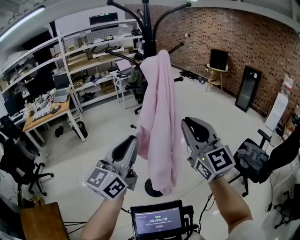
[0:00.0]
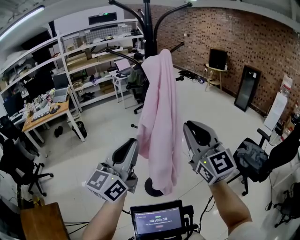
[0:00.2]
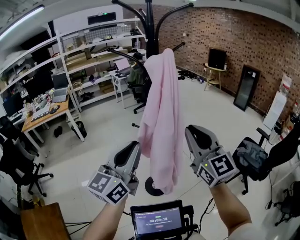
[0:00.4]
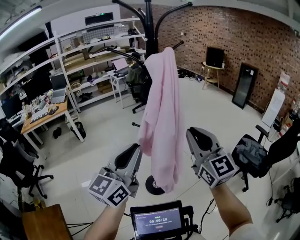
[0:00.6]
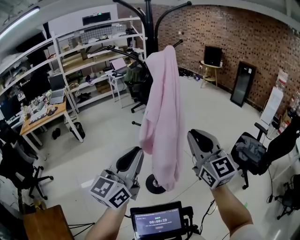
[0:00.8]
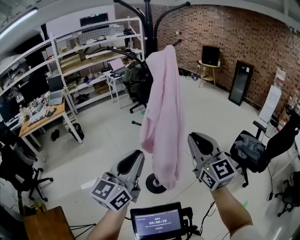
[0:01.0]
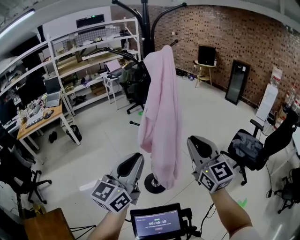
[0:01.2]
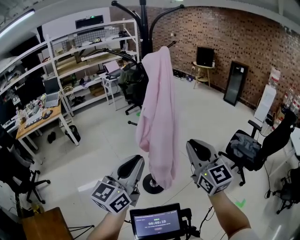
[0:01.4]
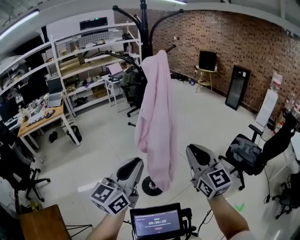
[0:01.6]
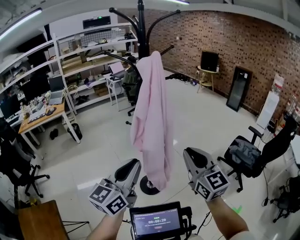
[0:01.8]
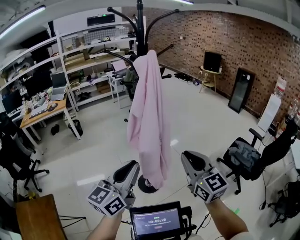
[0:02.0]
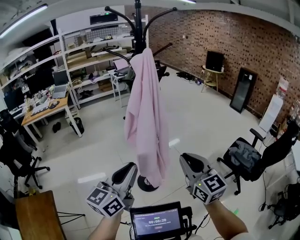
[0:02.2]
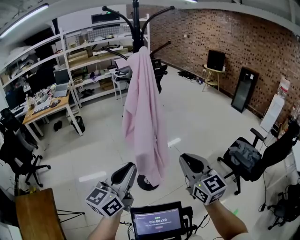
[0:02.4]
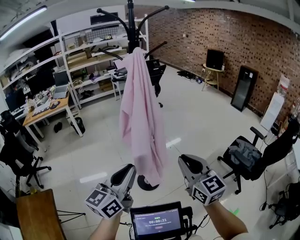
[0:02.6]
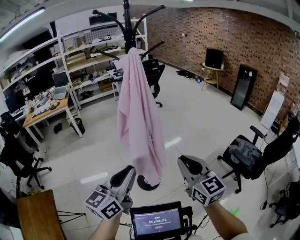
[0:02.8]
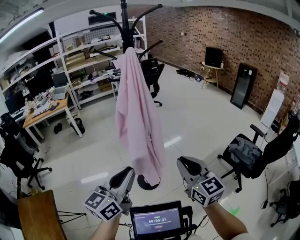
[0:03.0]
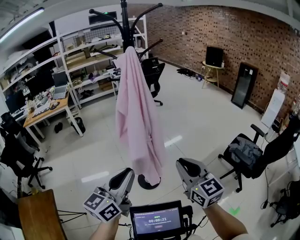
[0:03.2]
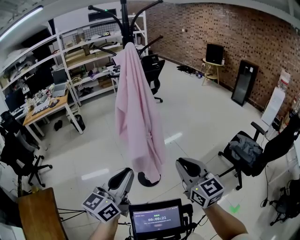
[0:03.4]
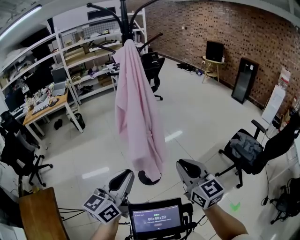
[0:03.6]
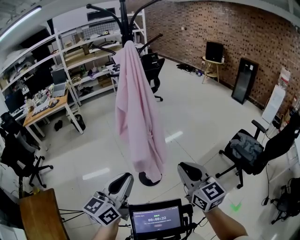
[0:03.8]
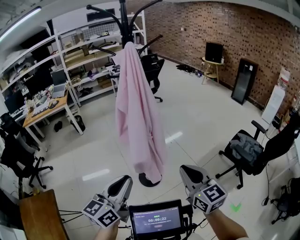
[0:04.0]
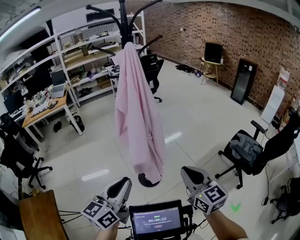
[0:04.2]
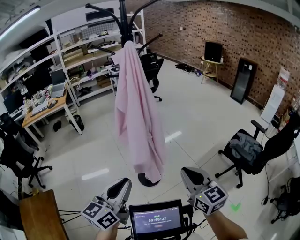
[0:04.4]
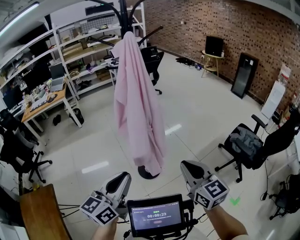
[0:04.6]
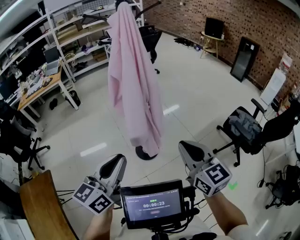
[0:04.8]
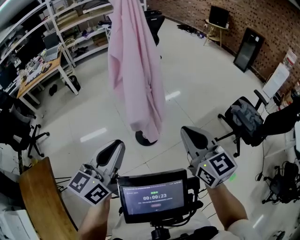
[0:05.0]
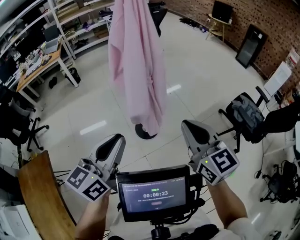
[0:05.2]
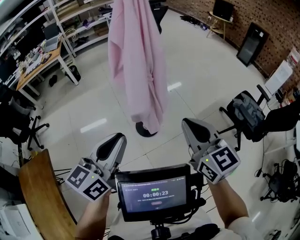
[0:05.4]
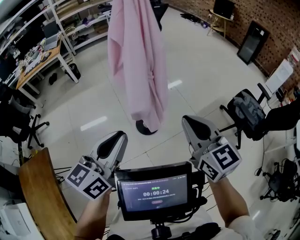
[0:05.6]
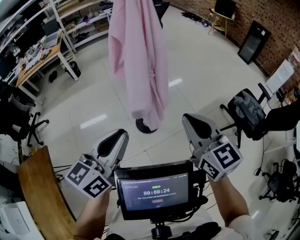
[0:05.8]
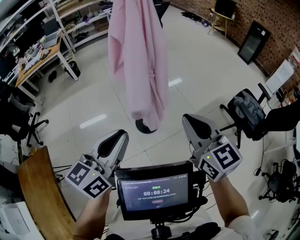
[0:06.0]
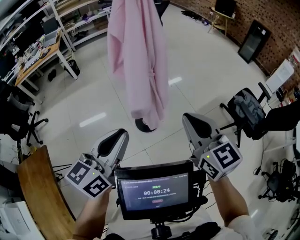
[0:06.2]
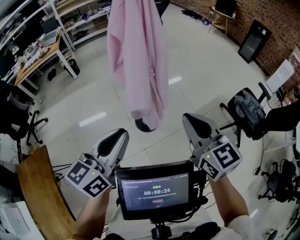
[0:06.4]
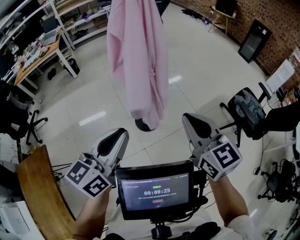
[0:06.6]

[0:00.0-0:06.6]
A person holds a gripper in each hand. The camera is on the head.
0:00.0 to 0:01.6: The left gripper heads backward and downward, covering about 10 cm; the right gripper shifts some 15 cm downward and backward.
0:01.6 to 0:03.2: The left gripper heads to the right and backward, covering roughly 10 cm, while the right gripper moves downward and to the right, about 10 cm.
0:03.2 to 0:06.6: There are only small adjustments of the grippers.

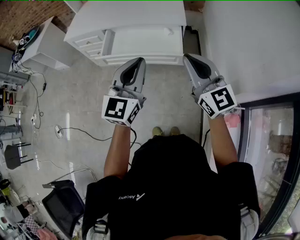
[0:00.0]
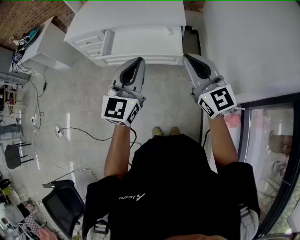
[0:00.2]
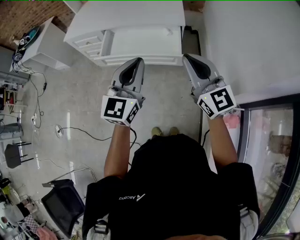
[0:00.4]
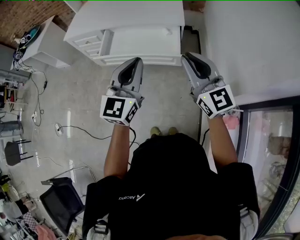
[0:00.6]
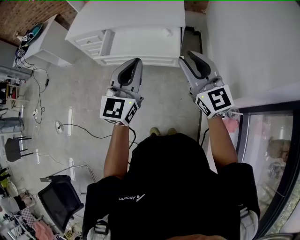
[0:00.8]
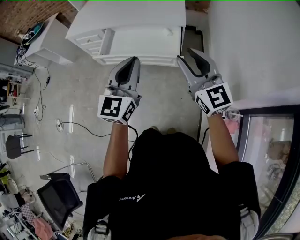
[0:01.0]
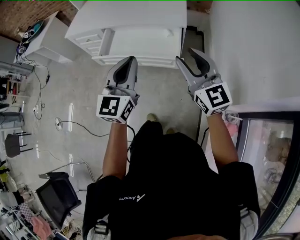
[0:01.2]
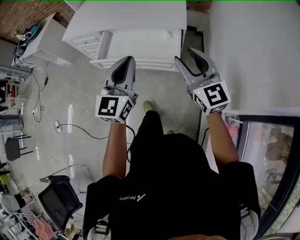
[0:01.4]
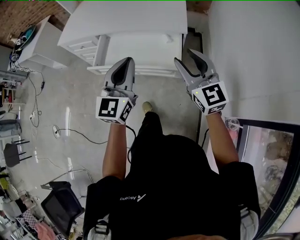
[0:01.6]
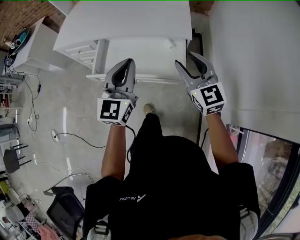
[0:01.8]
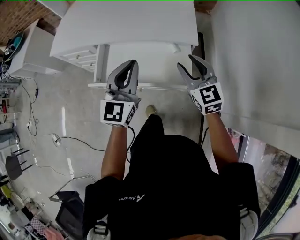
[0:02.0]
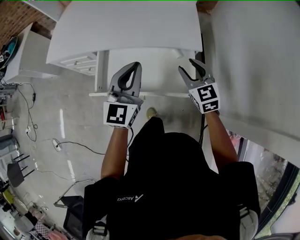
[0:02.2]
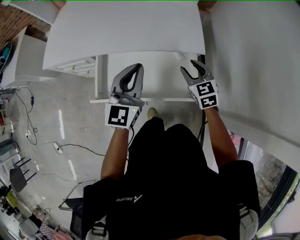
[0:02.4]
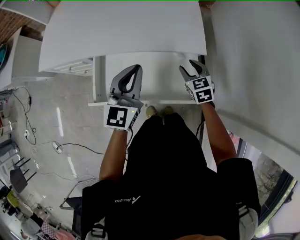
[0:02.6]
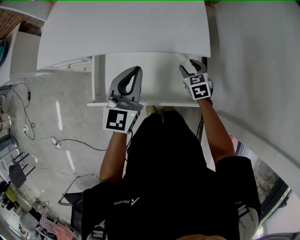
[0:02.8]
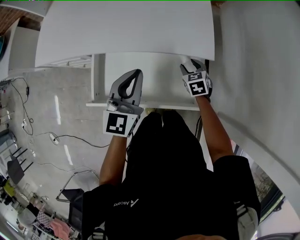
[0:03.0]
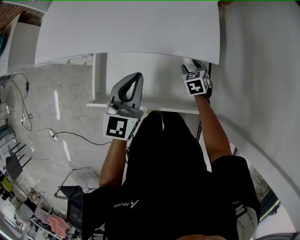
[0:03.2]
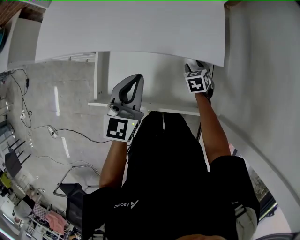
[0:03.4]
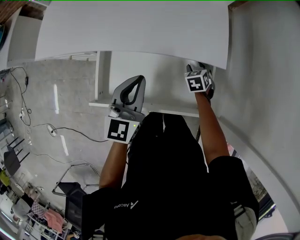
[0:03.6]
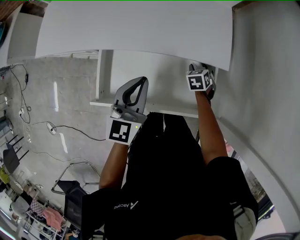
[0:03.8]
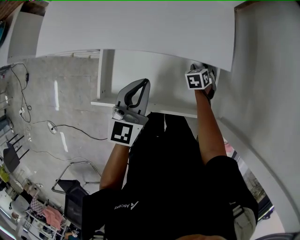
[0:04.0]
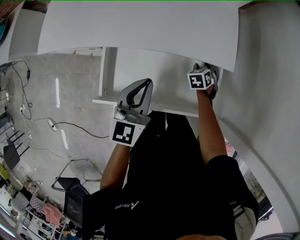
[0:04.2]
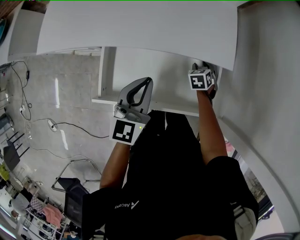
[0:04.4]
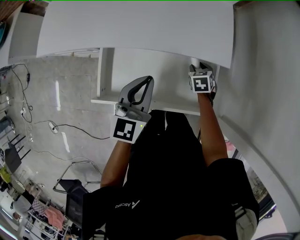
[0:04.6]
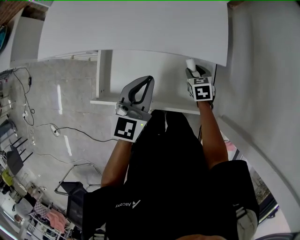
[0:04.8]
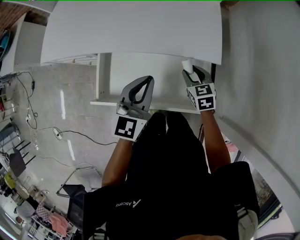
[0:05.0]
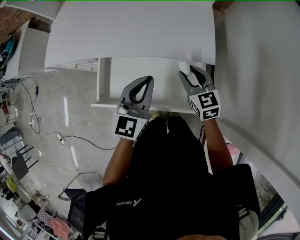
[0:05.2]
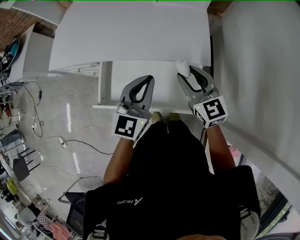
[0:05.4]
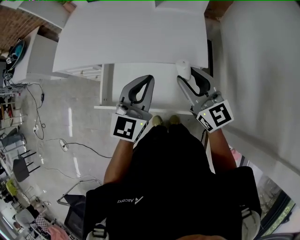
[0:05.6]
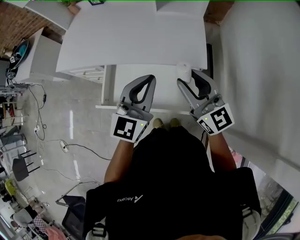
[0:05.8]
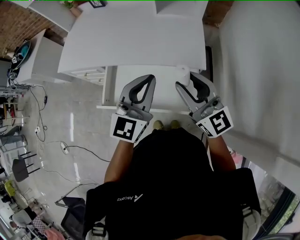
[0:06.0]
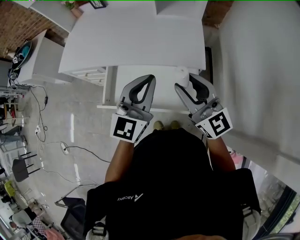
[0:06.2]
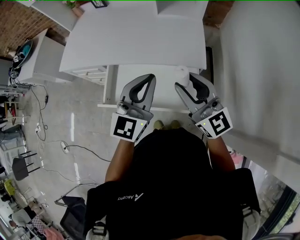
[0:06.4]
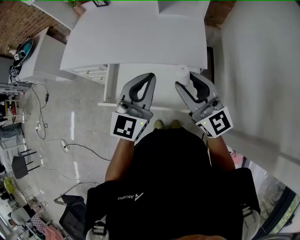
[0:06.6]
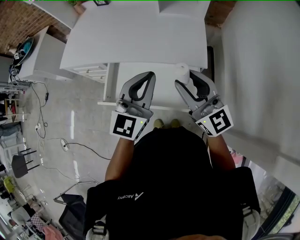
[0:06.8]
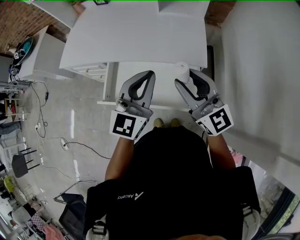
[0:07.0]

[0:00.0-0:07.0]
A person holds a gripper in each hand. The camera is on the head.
0:00.0 to 0:01.4: The left gripper goes some 10 cm forward. The right gripper heads forward and to the right, covering roughly 10 cm, and opens.
0:01.4 to 0:02.8: The left gripper shifts about 35 cm forward; the right gripper is displaced forward and downward by approximately 50 cm, and points its fingers some 50 degrees further downward.
0:02.8 to 0:04.2: The left gripper heads downward, covering roughly 5 cm, while the right gripper goes roughly 10 cm downward, and swivels roughly 20 degrees.
0:04.2 to 0:05.6: The right gripper shifts roughly 35 cm upward, and angles its fingers upward, by some 60 degrees; the left gripper moves upward, roughly 10 cm.
0:05.6 to 0:07.0: The left gripper travels upward by roughly 5 cm. Meanwhile the right gripper is displaced upward and backward by approximately 10 cm.

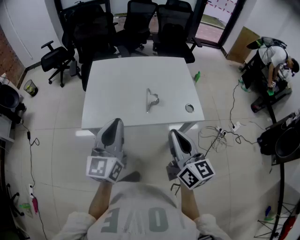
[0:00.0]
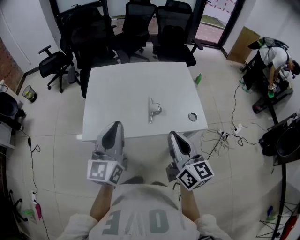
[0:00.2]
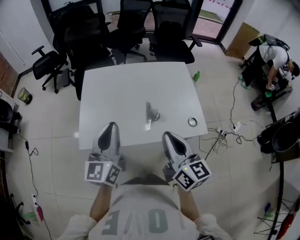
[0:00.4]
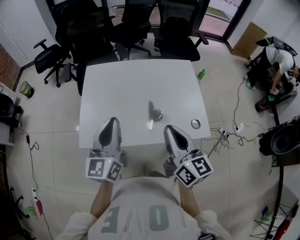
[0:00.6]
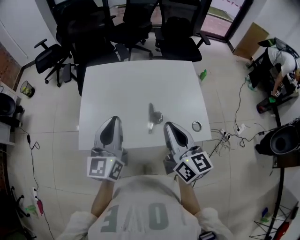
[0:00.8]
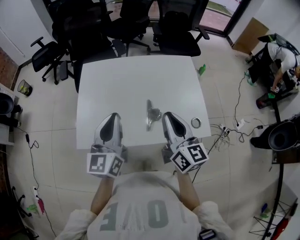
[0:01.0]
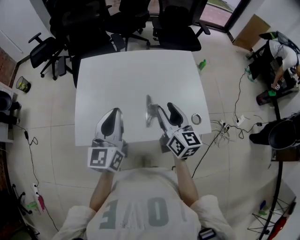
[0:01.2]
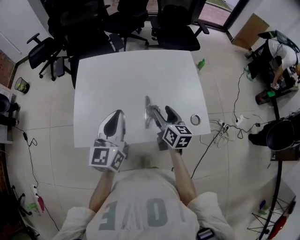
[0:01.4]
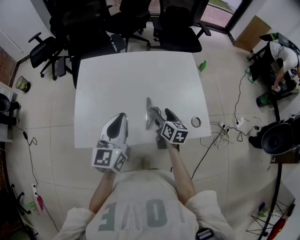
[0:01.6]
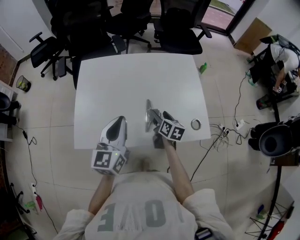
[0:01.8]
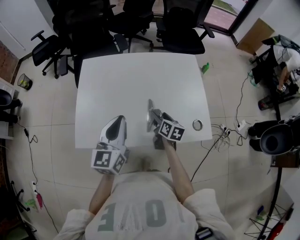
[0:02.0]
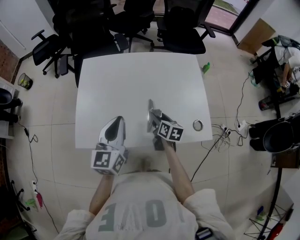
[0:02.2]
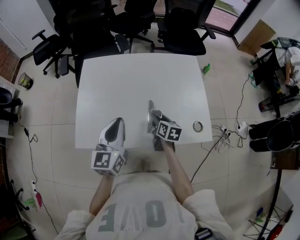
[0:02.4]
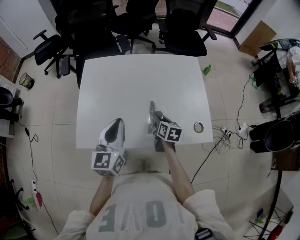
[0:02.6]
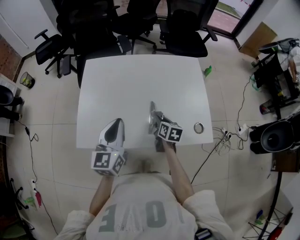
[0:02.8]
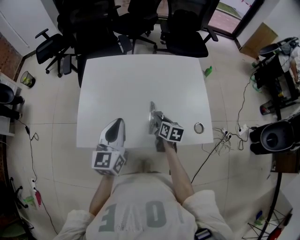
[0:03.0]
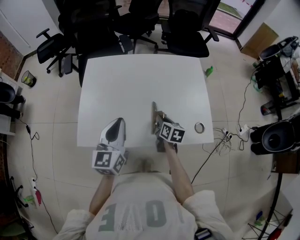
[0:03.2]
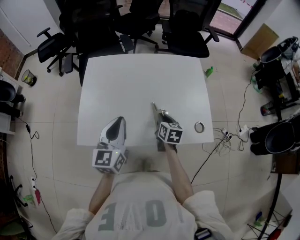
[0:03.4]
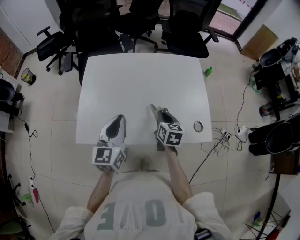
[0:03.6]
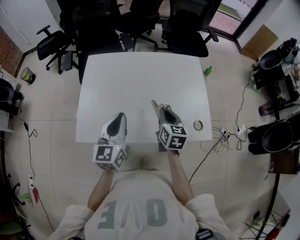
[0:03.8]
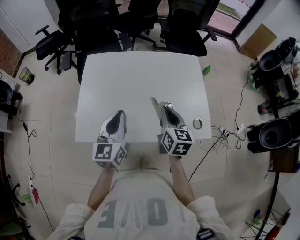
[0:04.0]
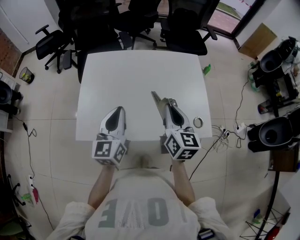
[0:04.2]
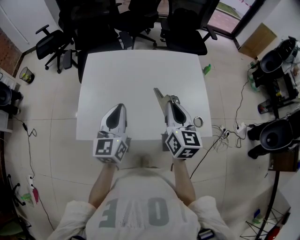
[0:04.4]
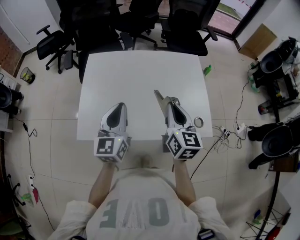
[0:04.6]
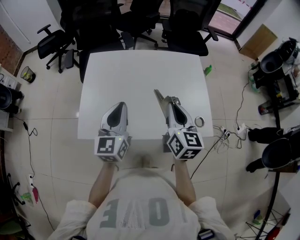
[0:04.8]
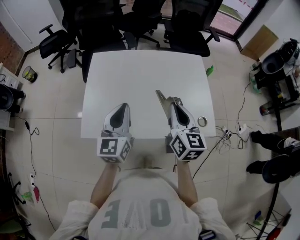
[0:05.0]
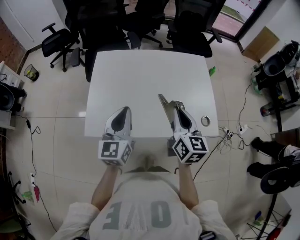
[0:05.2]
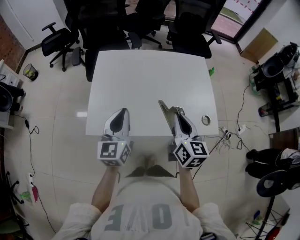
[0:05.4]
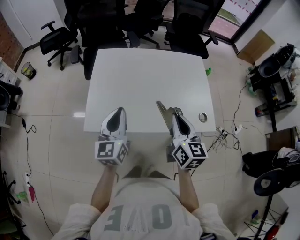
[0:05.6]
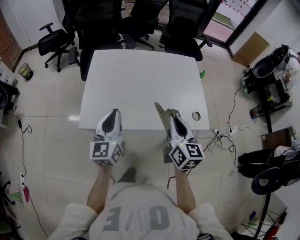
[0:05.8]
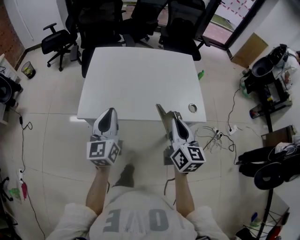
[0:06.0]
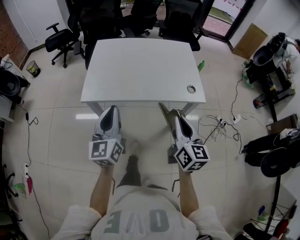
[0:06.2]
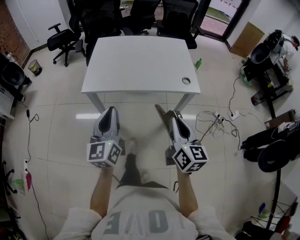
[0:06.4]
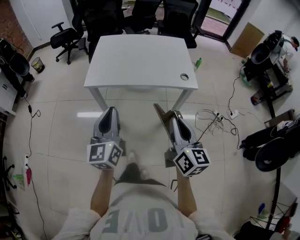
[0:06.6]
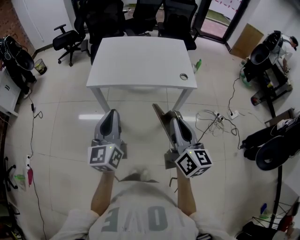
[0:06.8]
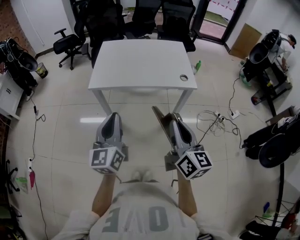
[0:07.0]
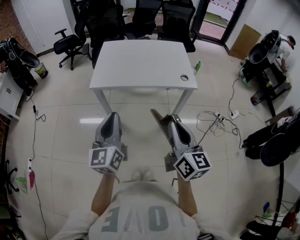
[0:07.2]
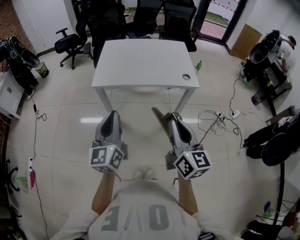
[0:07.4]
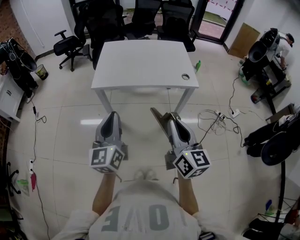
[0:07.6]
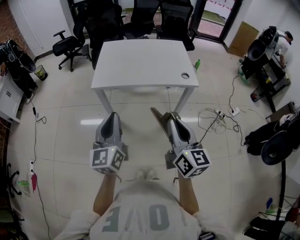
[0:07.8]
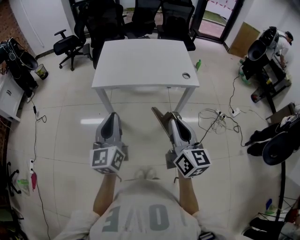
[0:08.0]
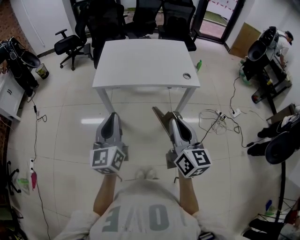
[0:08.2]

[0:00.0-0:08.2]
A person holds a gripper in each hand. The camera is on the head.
0:00.0 to 0:01.6: The left gripper heads forward and downward, covering roughly 20 cm. The right gripper heads forward and downward, covering about 35 cm, swivels roughly 30 degrees, and opens.
0:01.6 to 0:03.2: The right gripper shifts some 5 cm downward, and closes its fingers.
0:03.2 to 0:05.0: The right gripper is displaced upward by roughly 25 cm, and rotates about 30 degrees.
0:05.0 to 0:06.6: Both grippers travel together backward, approximately 40 cm.
0:06.6 to 0:08.2: The grippers both shift backward by some 5 cm.

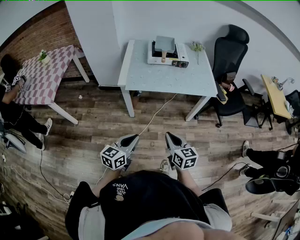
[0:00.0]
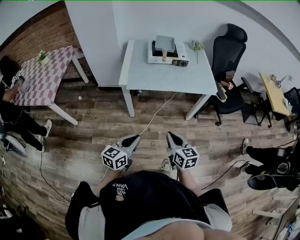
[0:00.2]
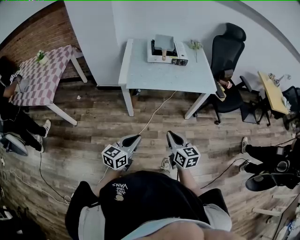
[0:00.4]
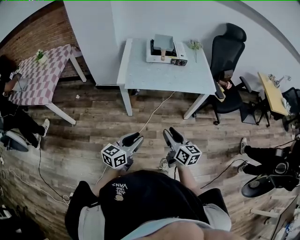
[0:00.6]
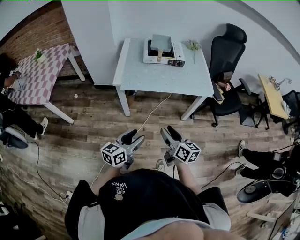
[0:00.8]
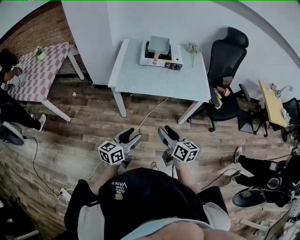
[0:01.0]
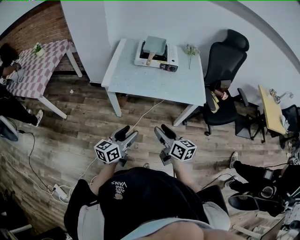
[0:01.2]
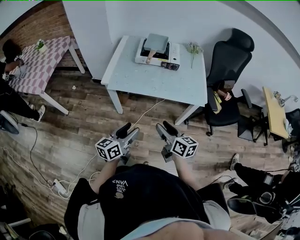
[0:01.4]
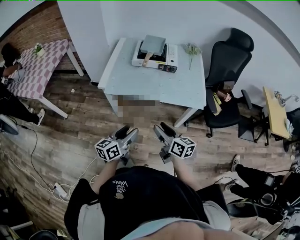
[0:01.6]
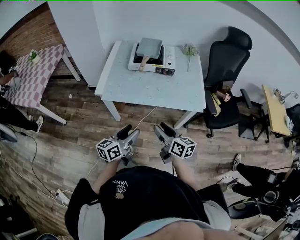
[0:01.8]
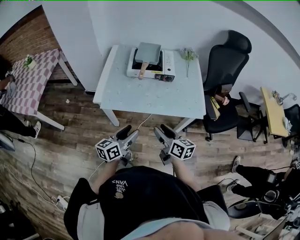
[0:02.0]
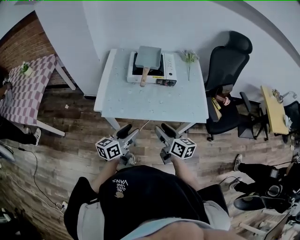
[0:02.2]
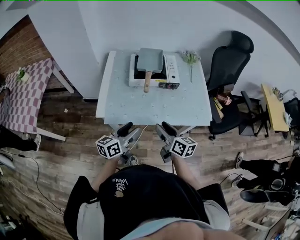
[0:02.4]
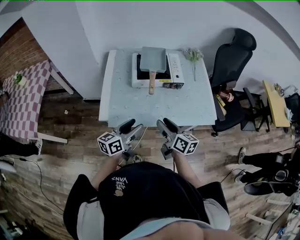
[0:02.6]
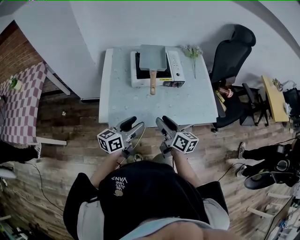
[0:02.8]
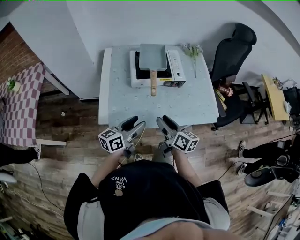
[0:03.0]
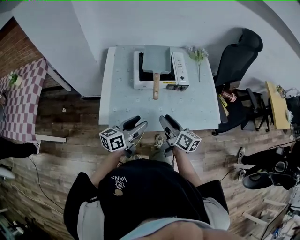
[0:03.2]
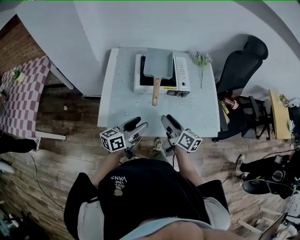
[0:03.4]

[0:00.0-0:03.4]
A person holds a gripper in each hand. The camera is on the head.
0:00.0 to 0:01.6: The left gripper travels to the right and forward by about 20 cm, and opens its fingers. The right gripper shifts about 15 cm forward and to the right, swivels about 20 degrees, and opens.
0:01.6 to 0:03.4: Both grippers travel together forward, some 30 cm.
